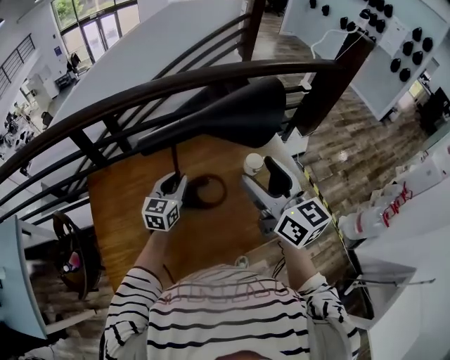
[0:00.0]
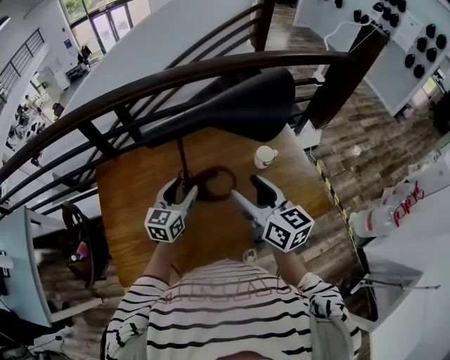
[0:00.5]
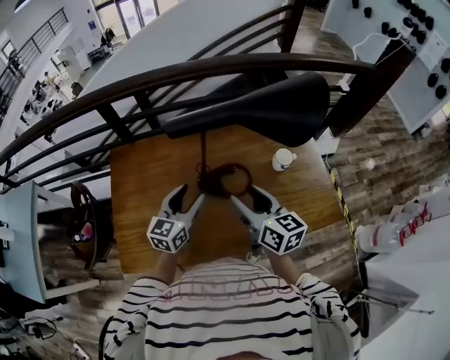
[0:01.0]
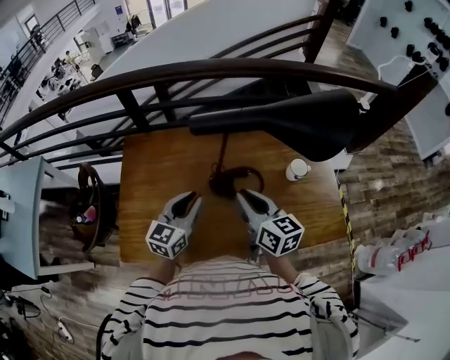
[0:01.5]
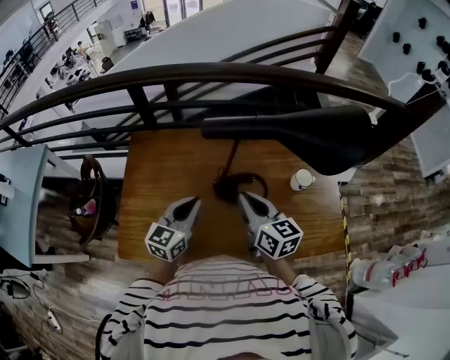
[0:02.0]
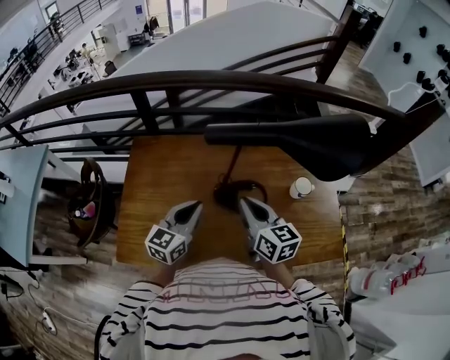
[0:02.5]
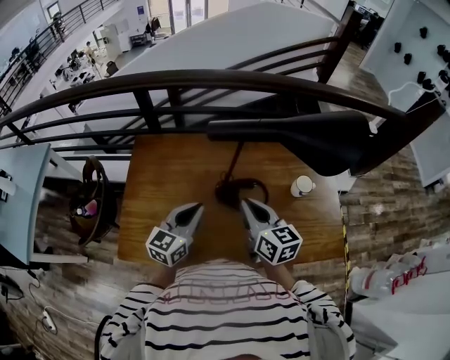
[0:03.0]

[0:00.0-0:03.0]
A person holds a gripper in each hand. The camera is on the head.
0:00.0 to 0:01.5: The left gripper is displaced backward and to the left by approximately 10 cm, and opens, then closes once more. Meanwhile the right gripper travels downward and to the left by some 20 cm, swivels approximately 30 degrees, and closes.
0:01.5 to 0:03.0: There are only small adjustments of the grippers.

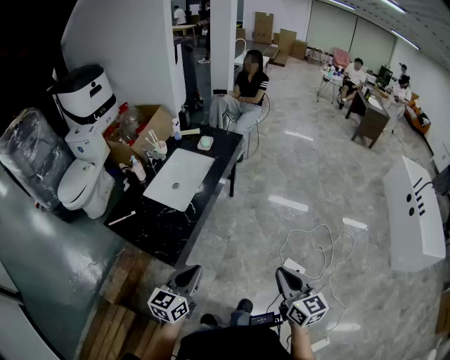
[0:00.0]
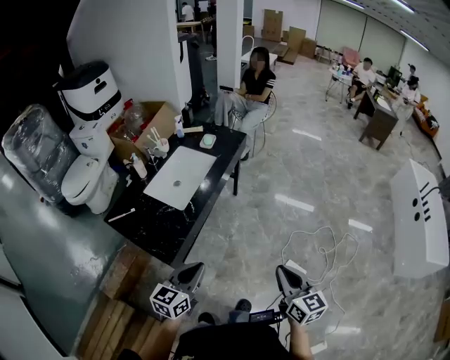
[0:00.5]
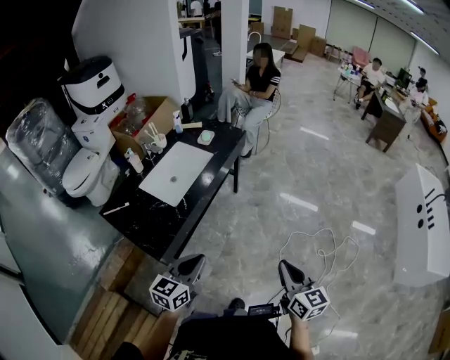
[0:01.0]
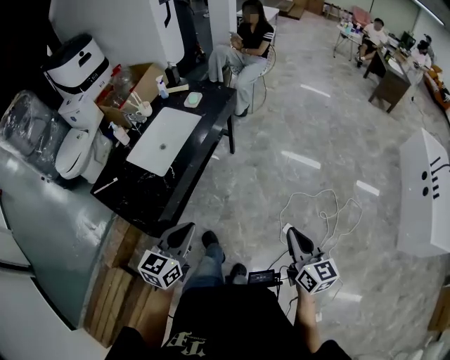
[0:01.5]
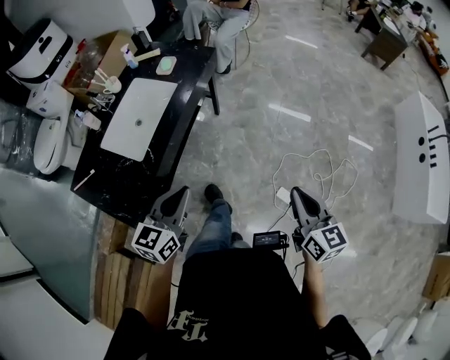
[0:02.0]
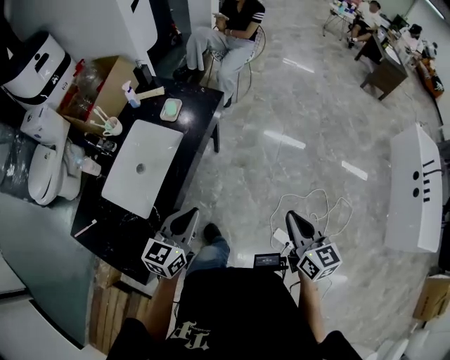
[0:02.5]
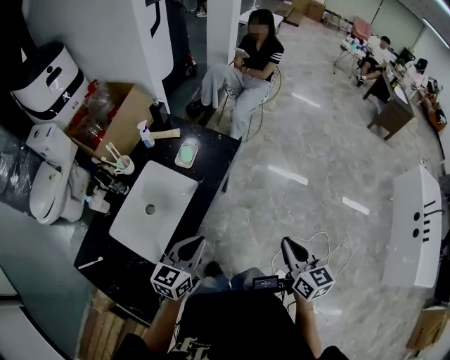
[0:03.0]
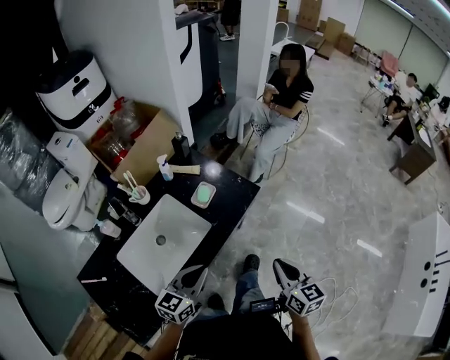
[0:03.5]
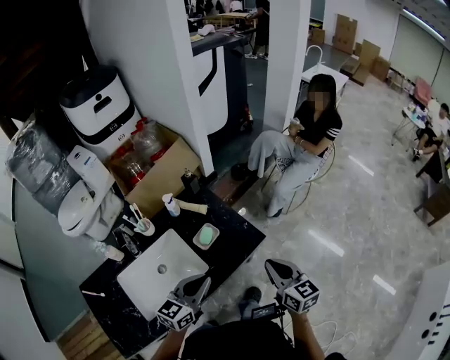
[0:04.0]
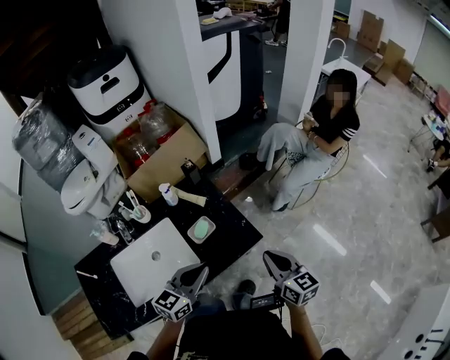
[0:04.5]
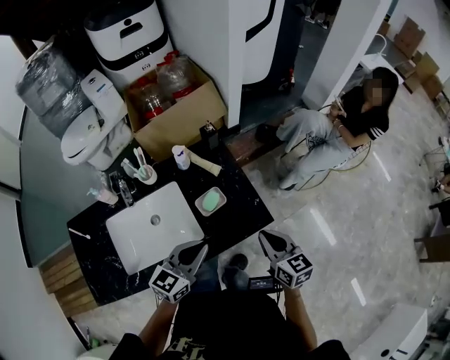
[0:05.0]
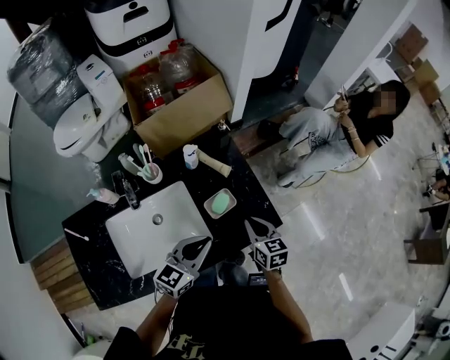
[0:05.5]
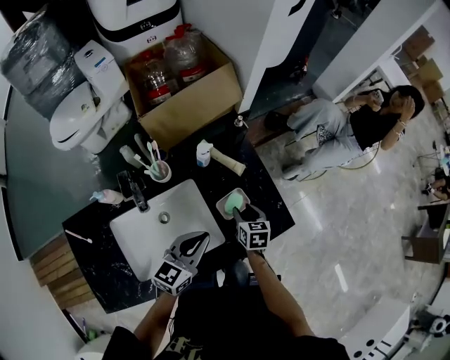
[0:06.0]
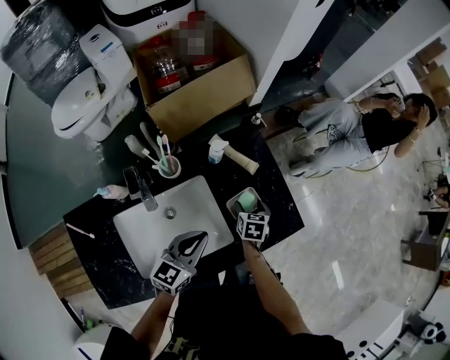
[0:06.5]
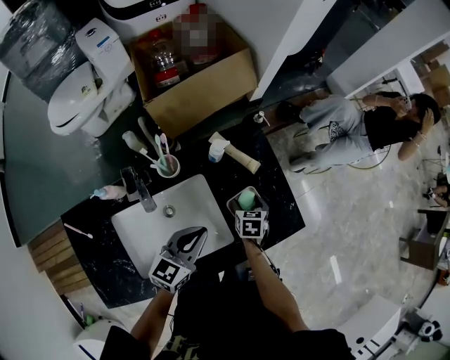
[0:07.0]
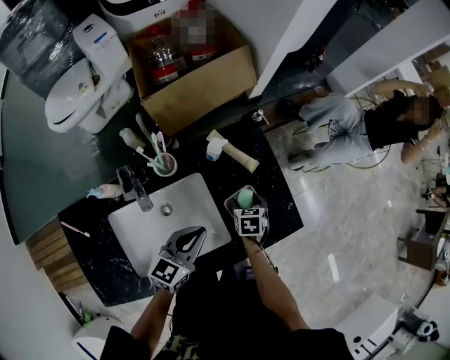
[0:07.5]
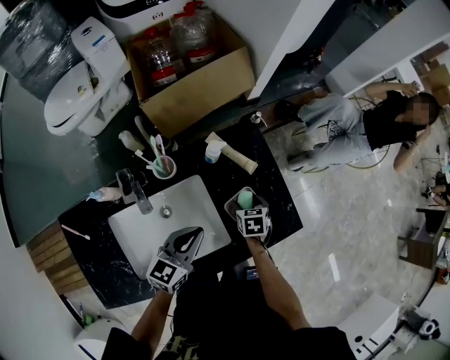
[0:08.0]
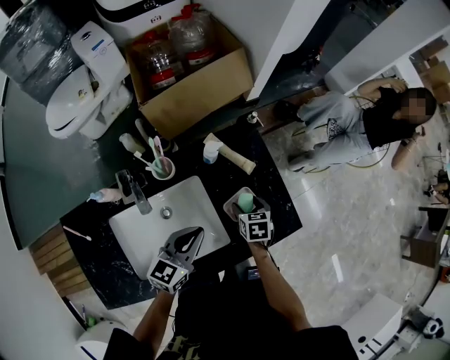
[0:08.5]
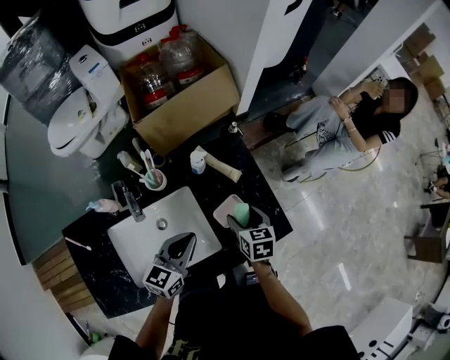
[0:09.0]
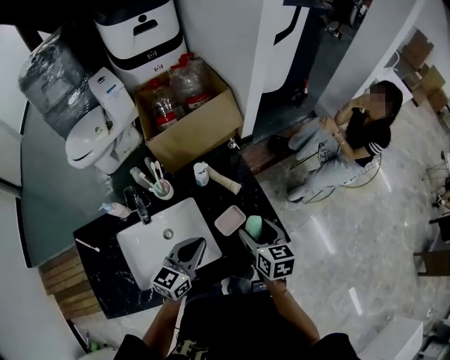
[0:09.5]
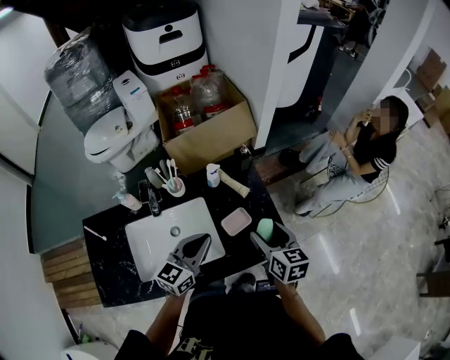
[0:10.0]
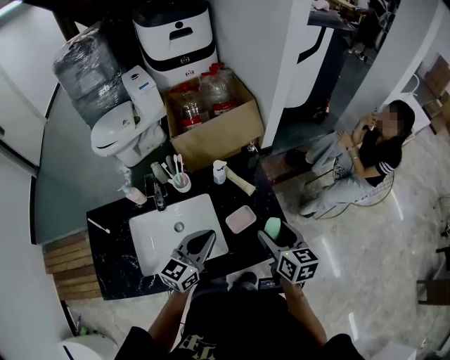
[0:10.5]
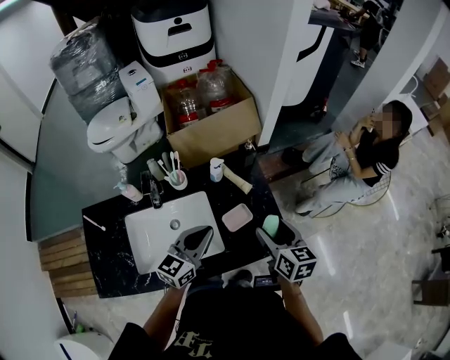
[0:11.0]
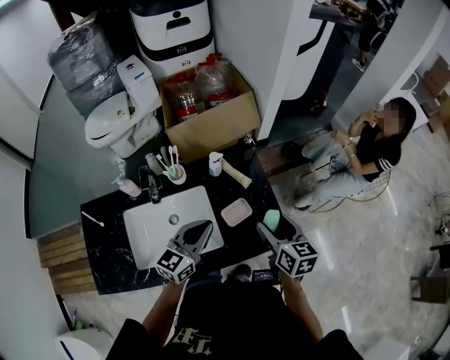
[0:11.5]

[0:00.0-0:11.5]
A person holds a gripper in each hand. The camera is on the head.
0:00.0 to 0:02.0: Both grippers move forward and to the right, approximately 25 cm.
0:02.0 to 0:04.0: The pair of grippers is taken approximately 60 cm. The right gripper swivels about 30 degrees.
0:04.0 to 0:06.0: The left gripper shifts approximately 20 cm forward, to the left and downward. The right gripper moves downward, forward and to the left, some 35 cm, angles its fingers downward, by roughly 30 degrees, and opens its fingers.
0:06.0 to 0:07.5: The right gripper is displaced downward by approximately 5 cm, and opens up. The left gripper shifts by approximately 5 cm.
0:07.5 to 0:09.5: The left gripper travels upward and to the right by approximately 10 cm, while the right gripper moves upward, some 25 cm, and turns by roughly 30 degrees.
0:09.5 to 0:11.5: The right gripper changes place by roughly 5 cm.

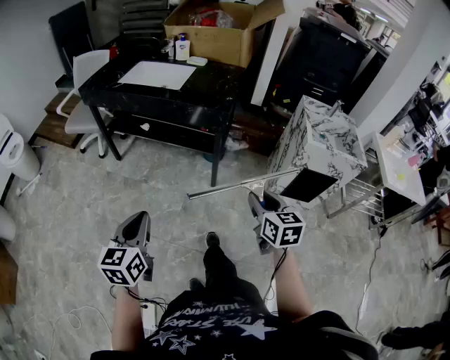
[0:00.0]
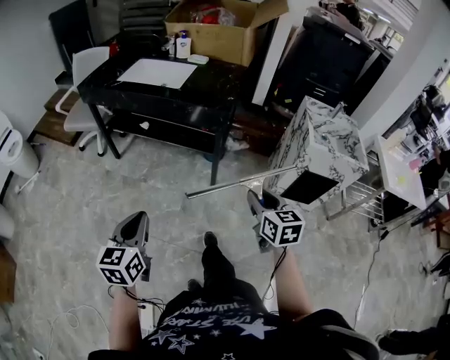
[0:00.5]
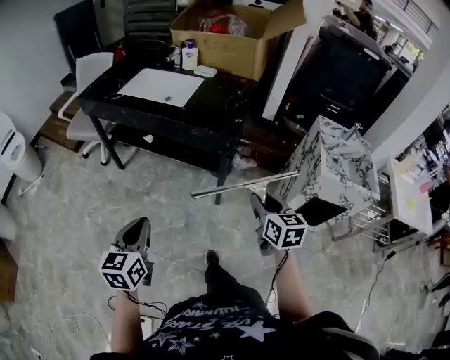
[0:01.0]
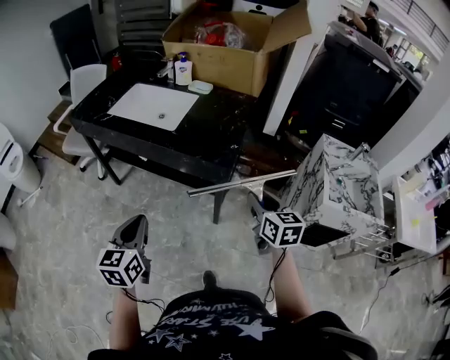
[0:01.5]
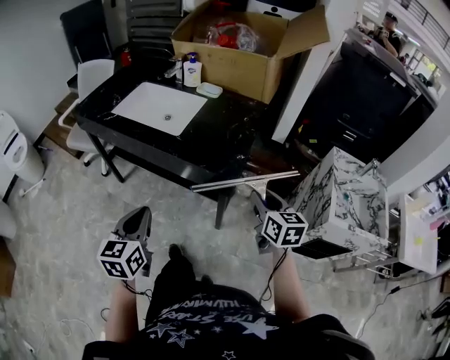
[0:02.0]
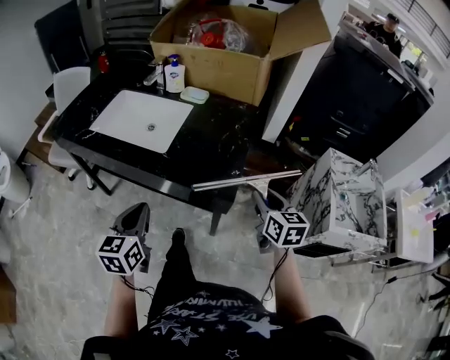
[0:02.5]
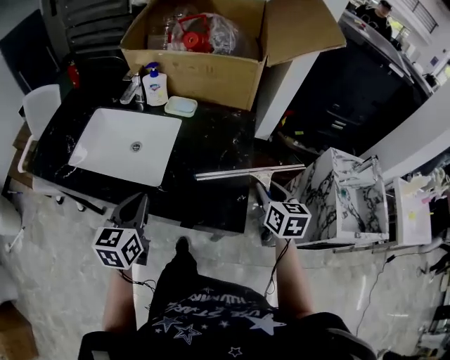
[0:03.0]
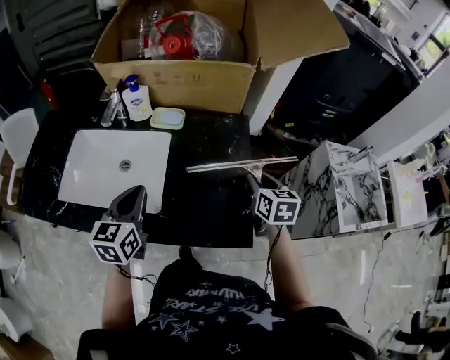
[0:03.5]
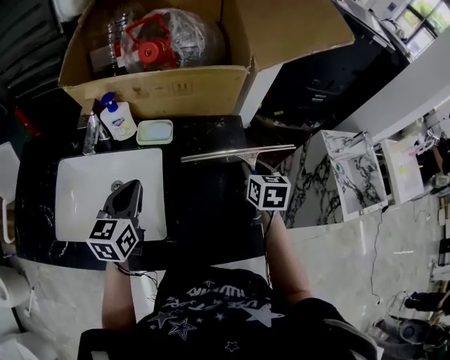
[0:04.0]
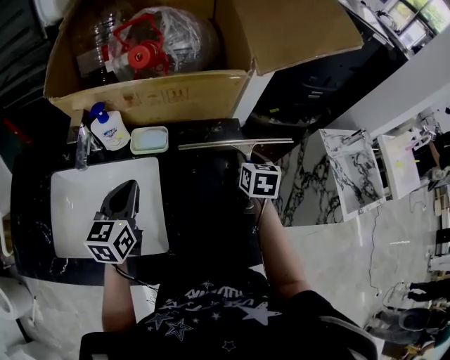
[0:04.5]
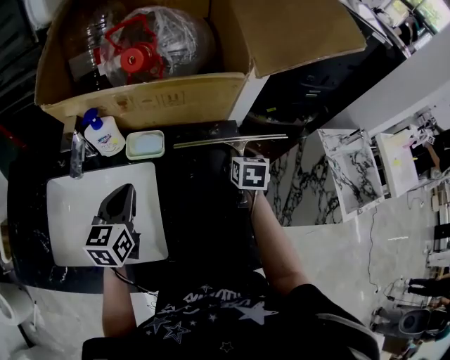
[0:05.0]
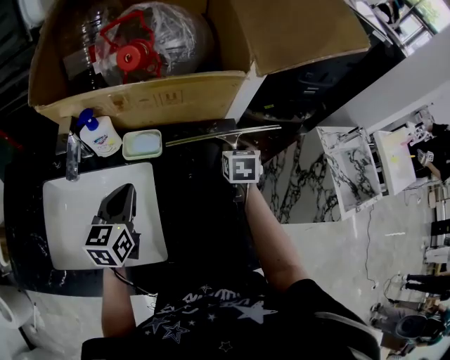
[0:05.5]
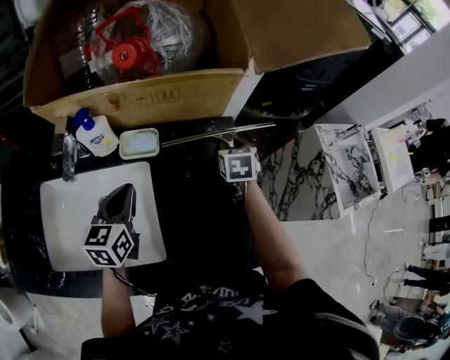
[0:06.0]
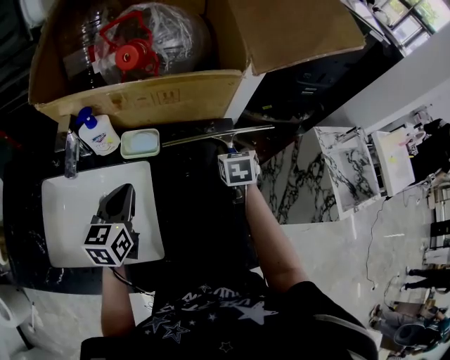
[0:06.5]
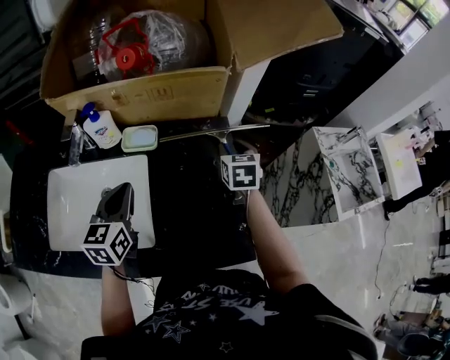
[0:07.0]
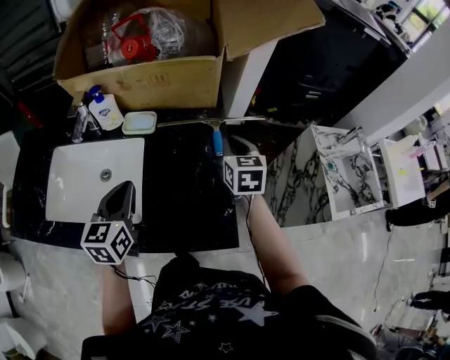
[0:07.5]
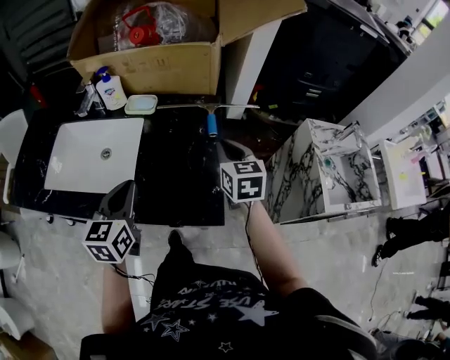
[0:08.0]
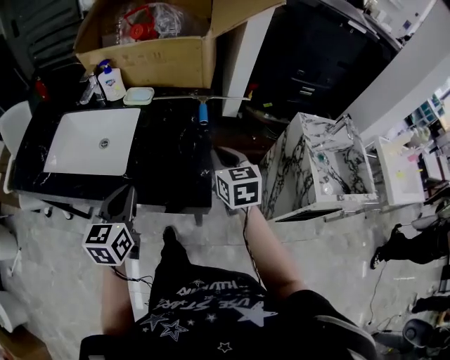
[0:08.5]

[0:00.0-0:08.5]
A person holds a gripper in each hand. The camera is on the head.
0:00.0 to 0:02.0: Both grippers travel together forward, roughly 40 cm.
0:02.0 to 0:04.0: Both grippers are carried roughly 50 cm. The left gripper swivels roughly 30 degrees. The right gripper rotates some 40 degrees.
0:04.0 to 0:06.5: The left gripper goes approximately 5 cm forward. The right gripper shifts roughly 10 cm forward.
0:06.5 to 0:08.5: The right gripper goes about 30 cm backward, swivels about 30 degrees, and closes its fingers; the left gripper moves backward and to the right, approximately 35 cm.

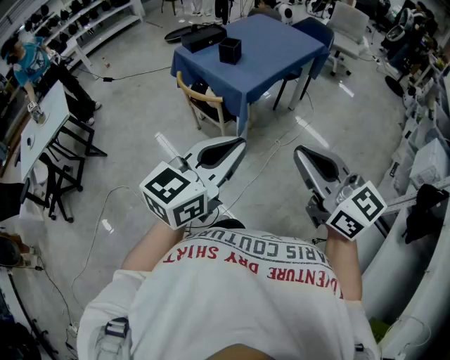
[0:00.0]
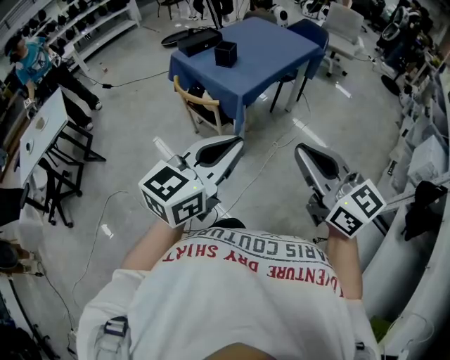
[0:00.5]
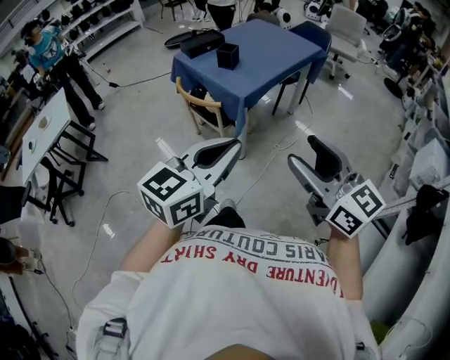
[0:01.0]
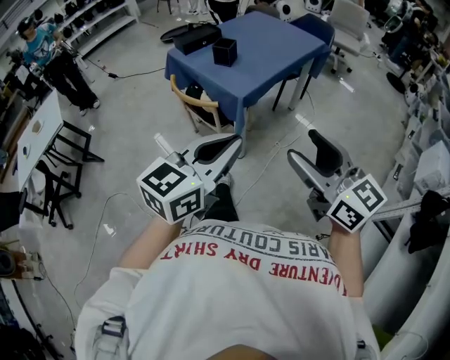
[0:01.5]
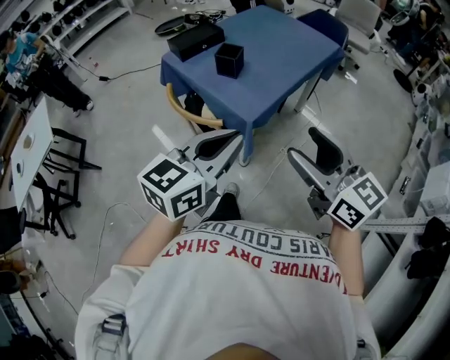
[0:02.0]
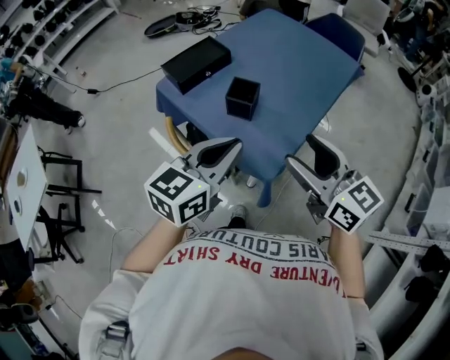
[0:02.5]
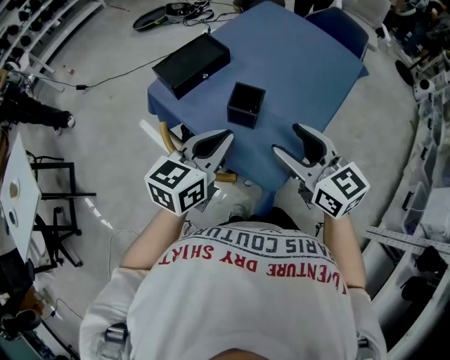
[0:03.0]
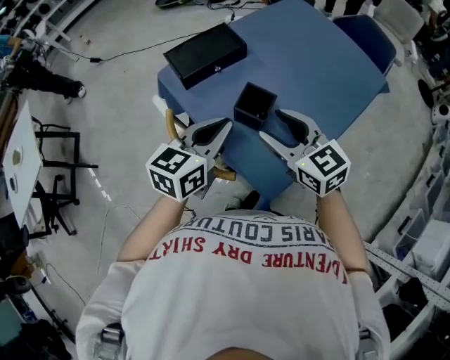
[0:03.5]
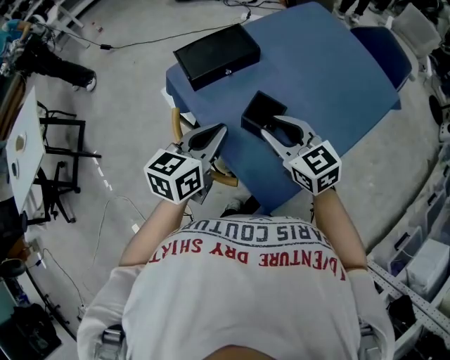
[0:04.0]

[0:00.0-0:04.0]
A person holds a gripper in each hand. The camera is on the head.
0:00.0 to 0:02.0: The grippers both shift forward by about 25 cm. The right gripper opens.
0:02.0 to 0:04.0: The two grippers go some 40 cm forward. The left gripper rotates roughly 30 degrees, while the right gripper changes its angle by roughly 30 degrees, and closes.
